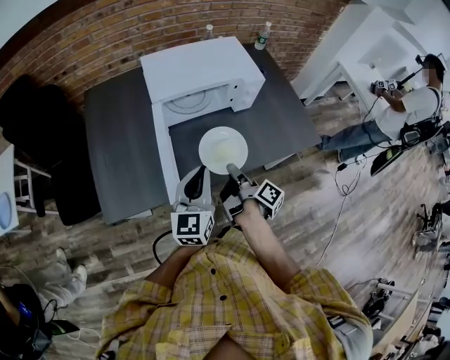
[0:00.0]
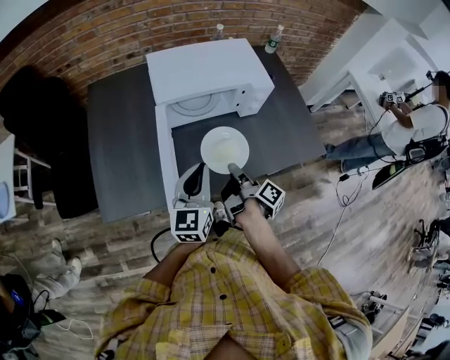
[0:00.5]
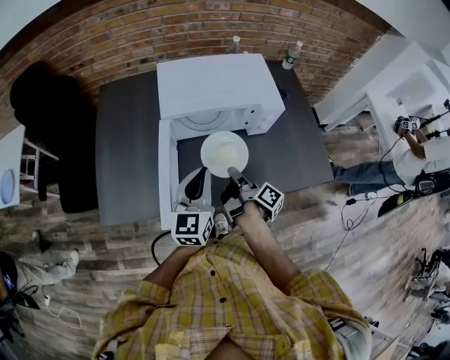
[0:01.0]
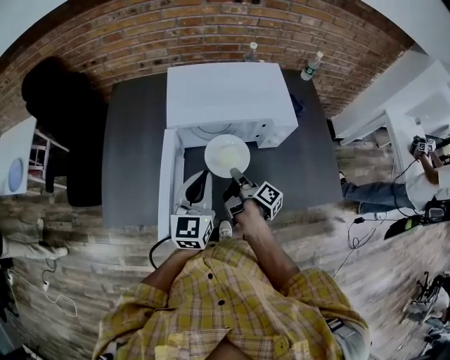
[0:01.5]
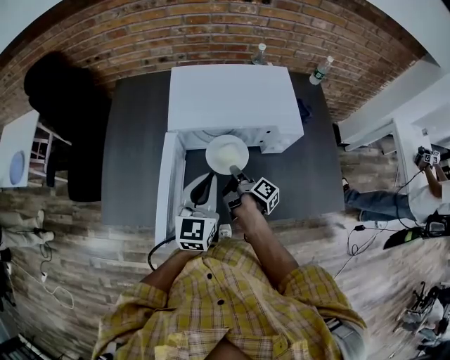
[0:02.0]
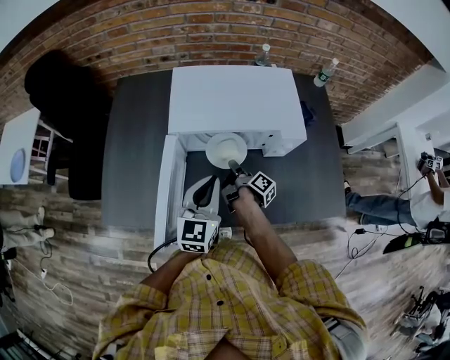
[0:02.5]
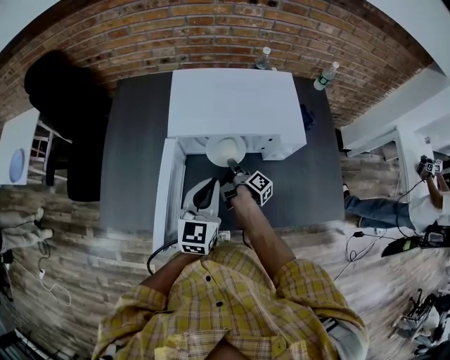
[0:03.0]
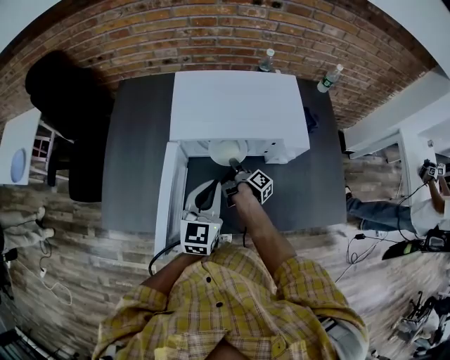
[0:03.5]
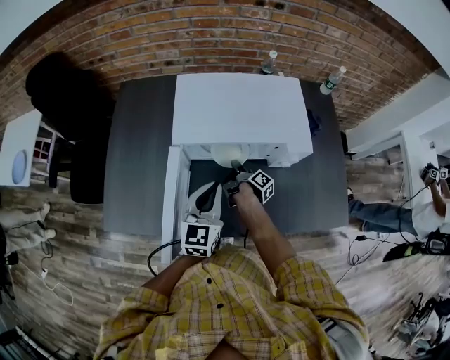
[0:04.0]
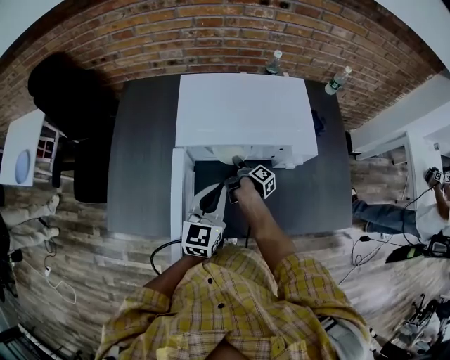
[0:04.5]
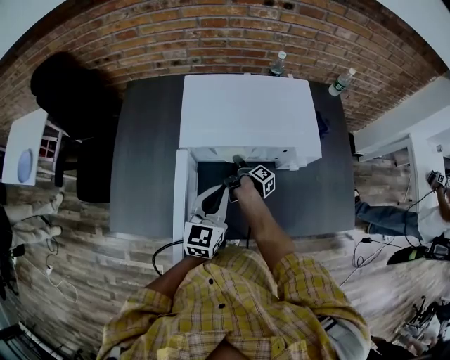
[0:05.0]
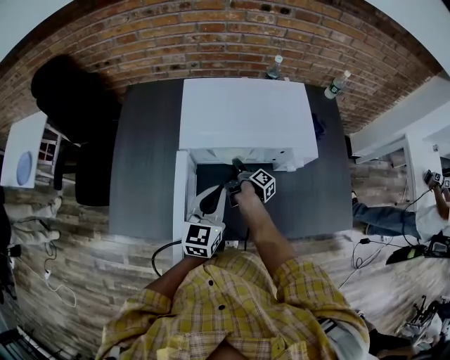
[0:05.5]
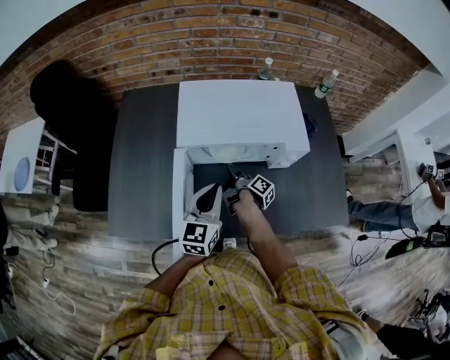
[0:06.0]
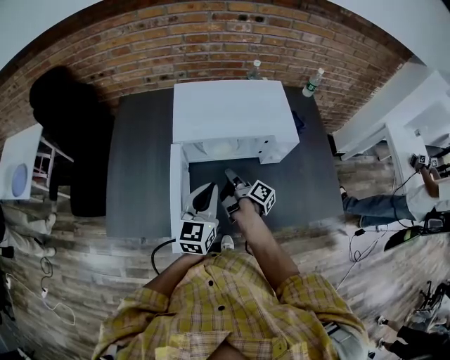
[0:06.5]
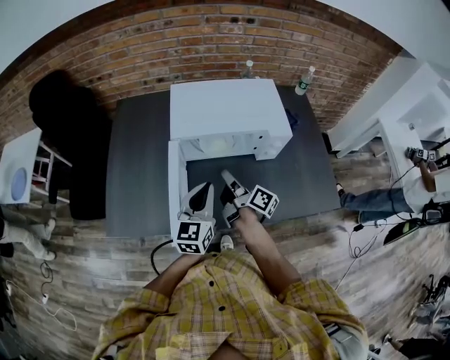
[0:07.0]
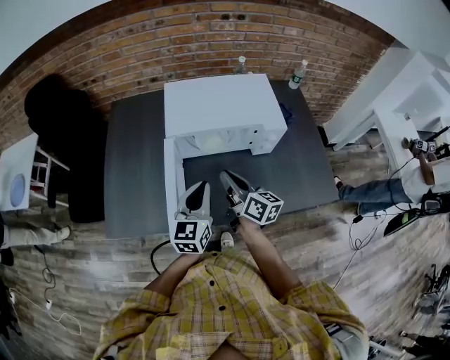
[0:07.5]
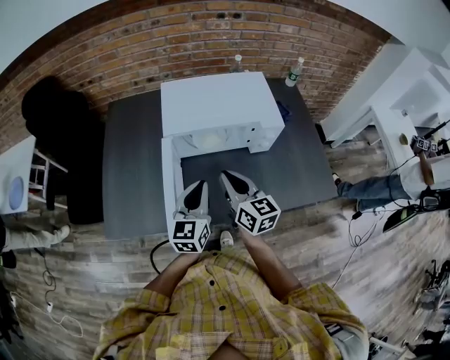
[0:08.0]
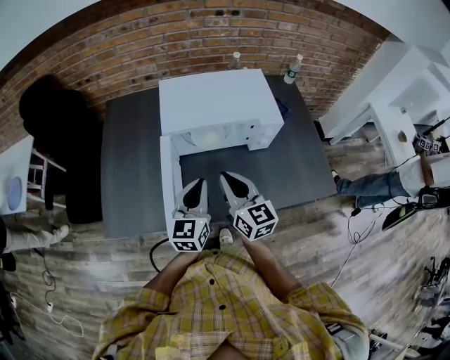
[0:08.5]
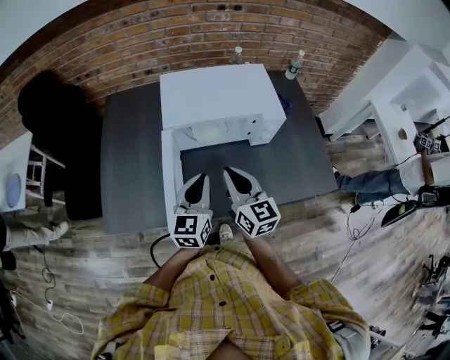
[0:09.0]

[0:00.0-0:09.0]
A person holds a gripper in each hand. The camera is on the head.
0:00.0 to 0:02.0: The left gripper shifts by approximately 15 cm.
0:02.0 to 0:04.5: The left gripper changes place by some 5 cm.
0:04.5 to 0:07.0: The left gripper moves some 10 cm.

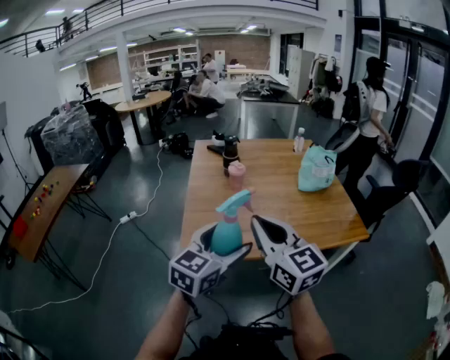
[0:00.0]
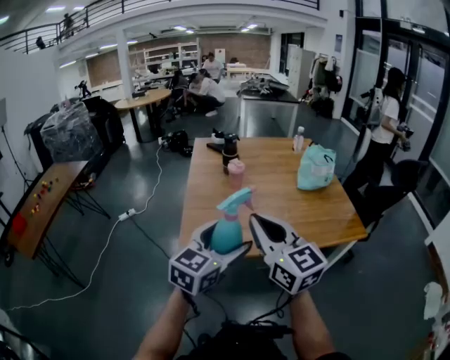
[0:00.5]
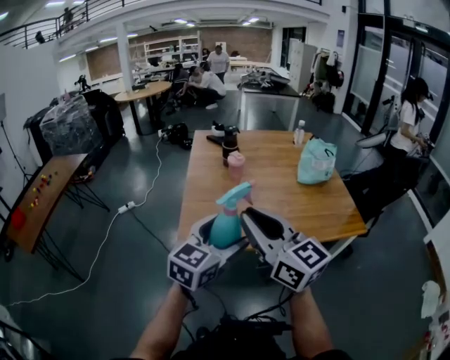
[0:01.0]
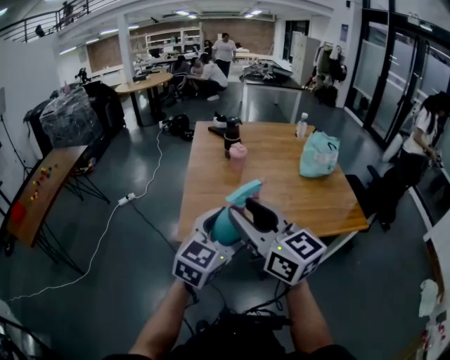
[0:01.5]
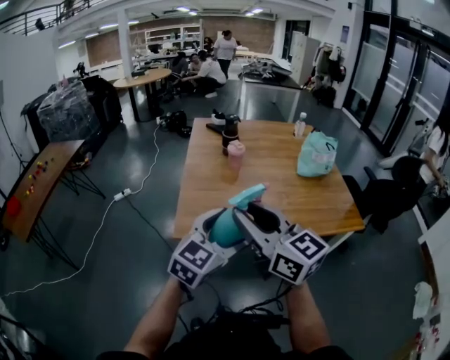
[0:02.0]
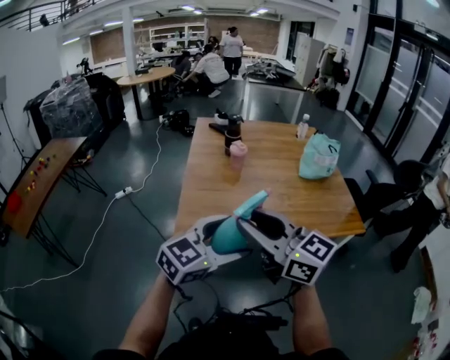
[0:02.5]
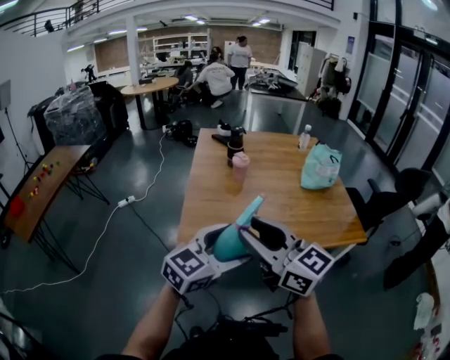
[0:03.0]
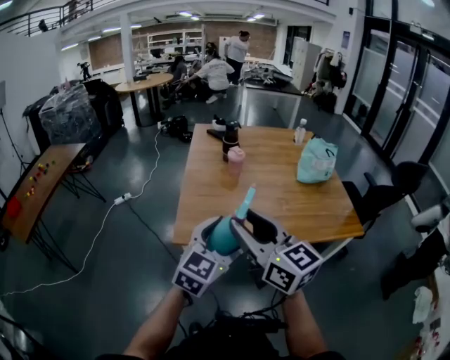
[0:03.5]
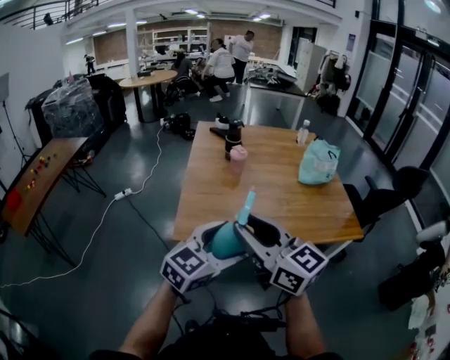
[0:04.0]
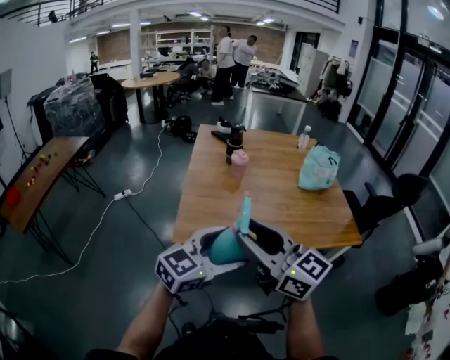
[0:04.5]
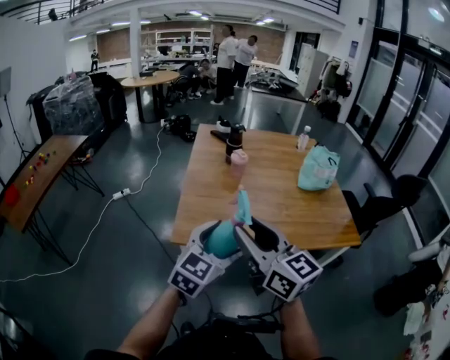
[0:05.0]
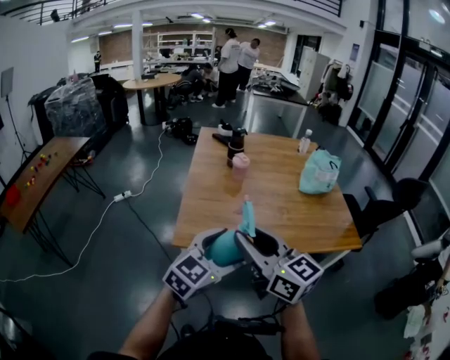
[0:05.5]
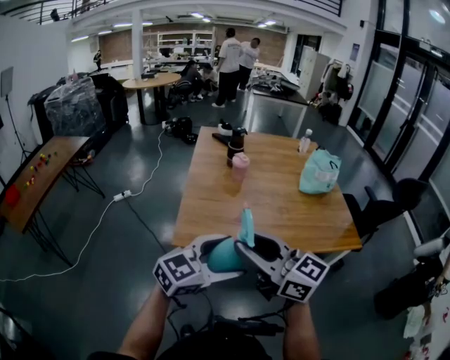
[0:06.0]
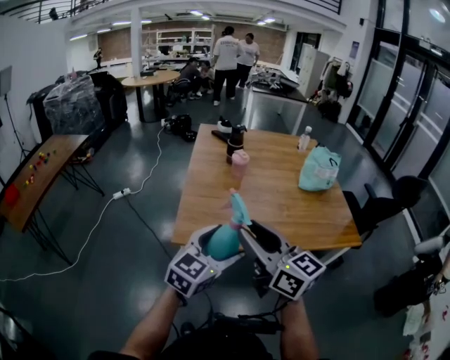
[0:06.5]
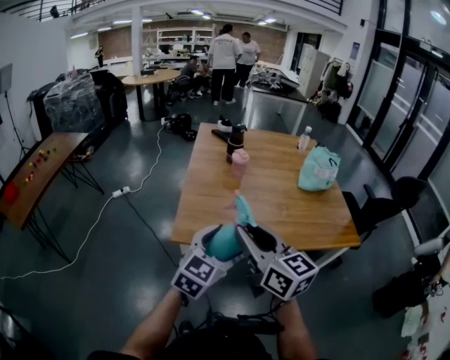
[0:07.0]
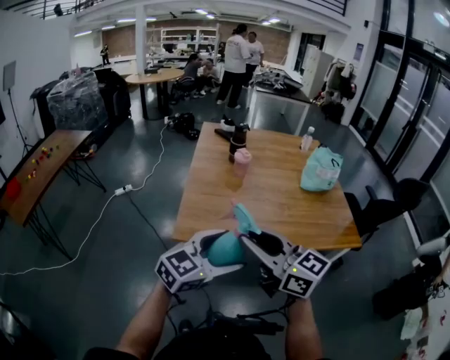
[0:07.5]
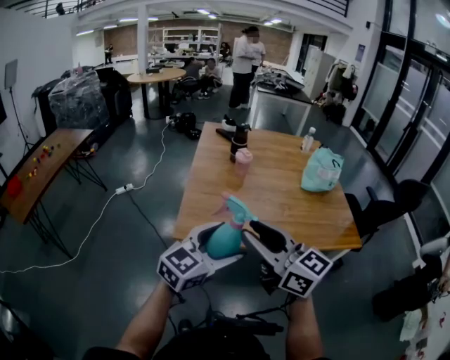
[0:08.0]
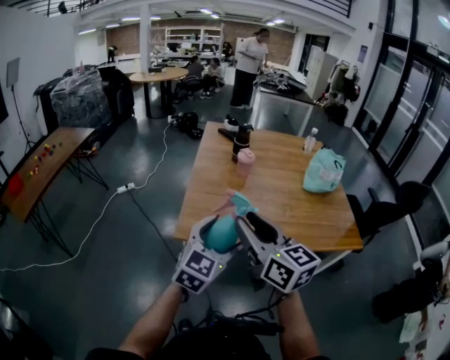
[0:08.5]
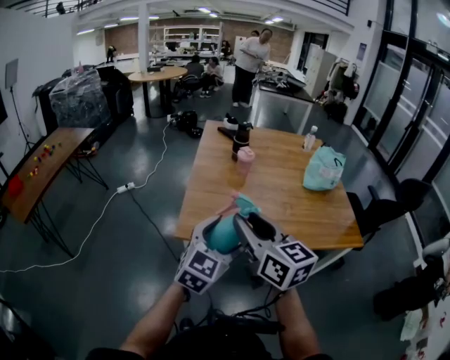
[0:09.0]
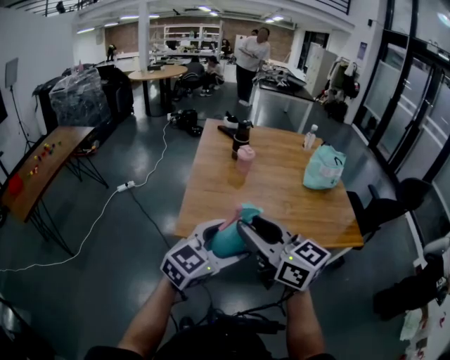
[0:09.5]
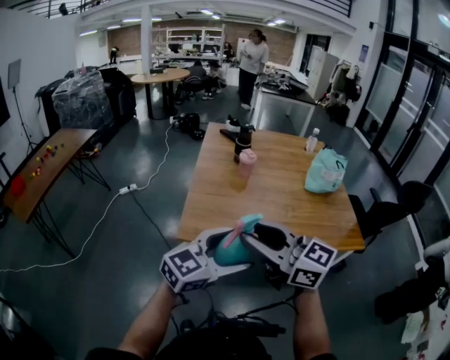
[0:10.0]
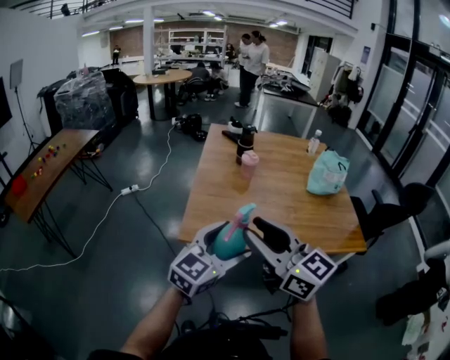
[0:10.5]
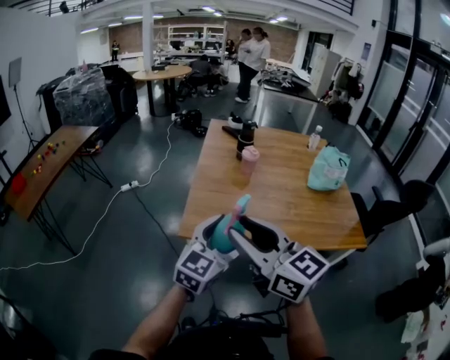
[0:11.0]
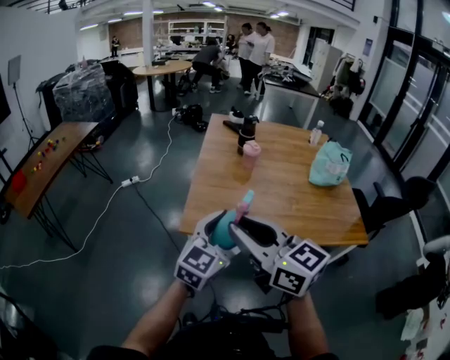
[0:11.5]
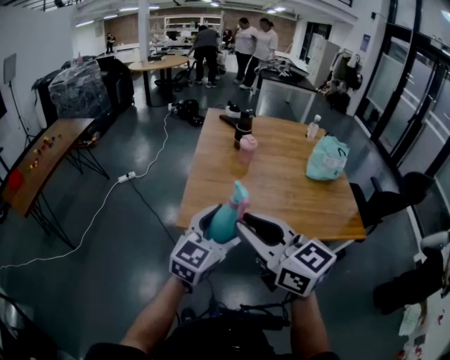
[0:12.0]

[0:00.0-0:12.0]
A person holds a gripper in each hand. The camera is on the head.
0:00.0 to 0:02.0: The right gripper opens up.
0:04.0 to 0:06.0: The grippers make only small movements.
0:10.0 to 0:12.0: The left gripper heads forward, covering approximately 5 cm, and swivels about 20 degrees.

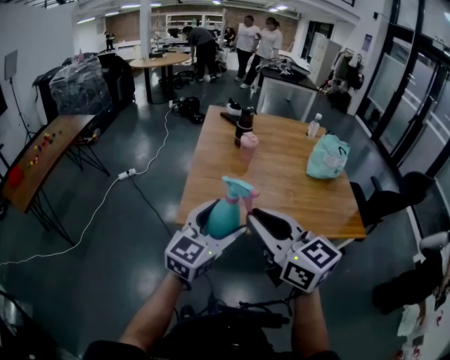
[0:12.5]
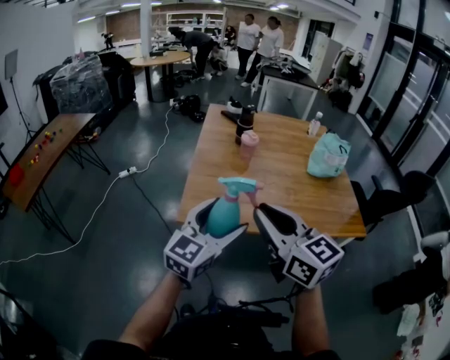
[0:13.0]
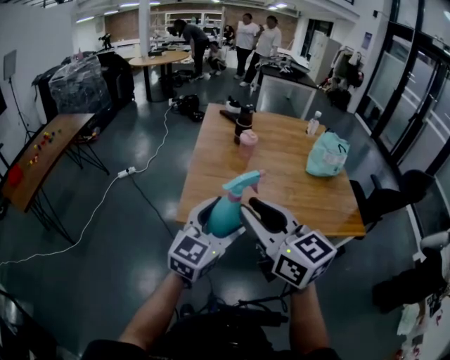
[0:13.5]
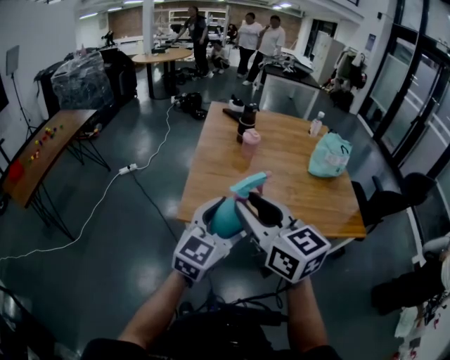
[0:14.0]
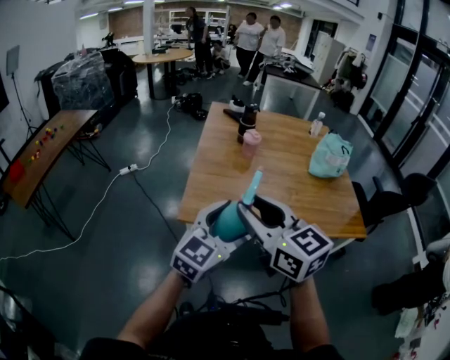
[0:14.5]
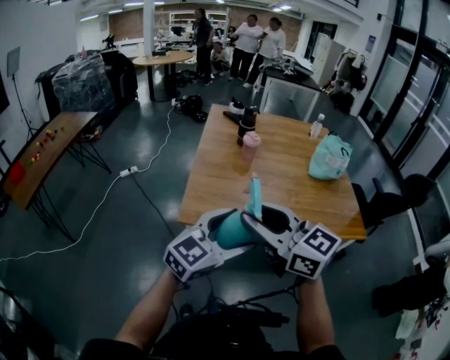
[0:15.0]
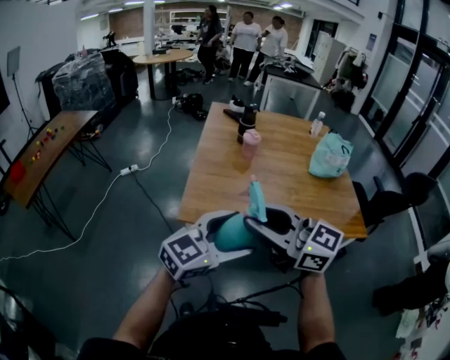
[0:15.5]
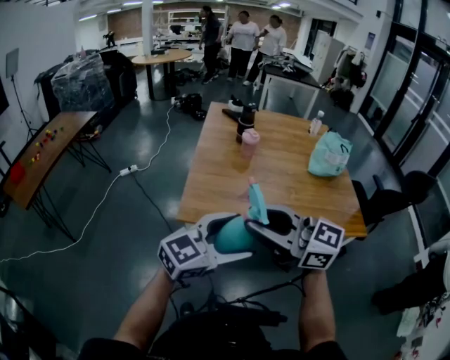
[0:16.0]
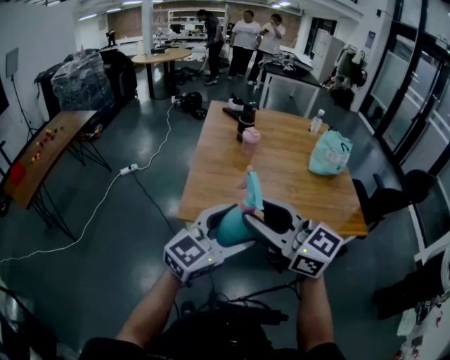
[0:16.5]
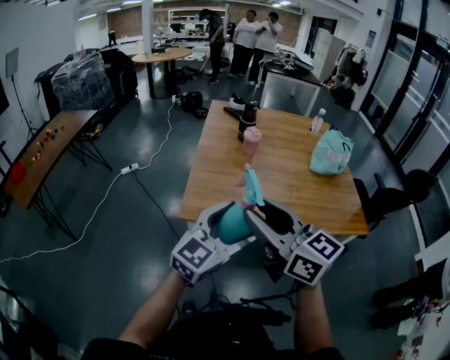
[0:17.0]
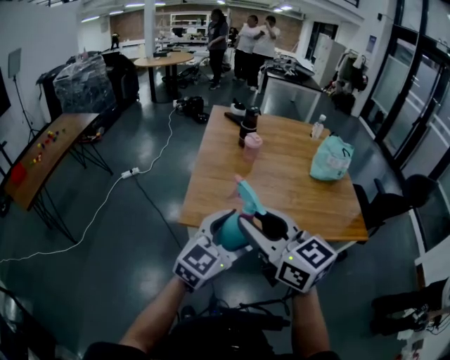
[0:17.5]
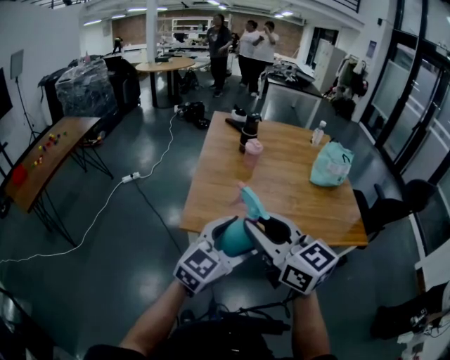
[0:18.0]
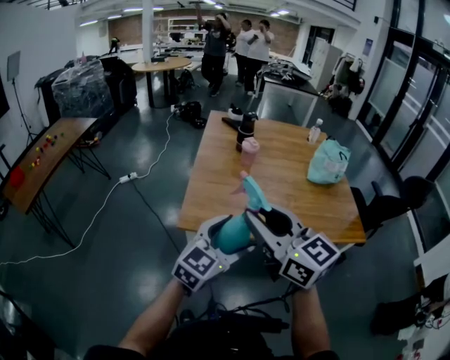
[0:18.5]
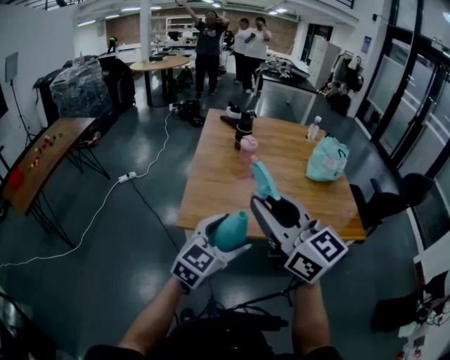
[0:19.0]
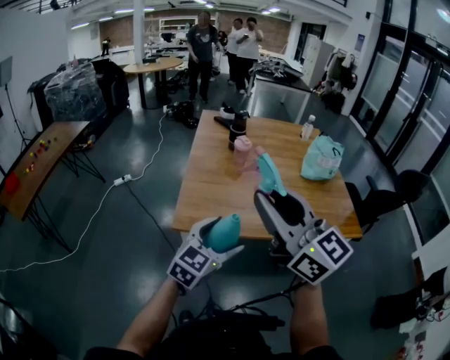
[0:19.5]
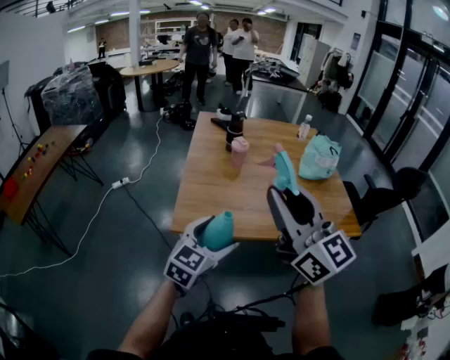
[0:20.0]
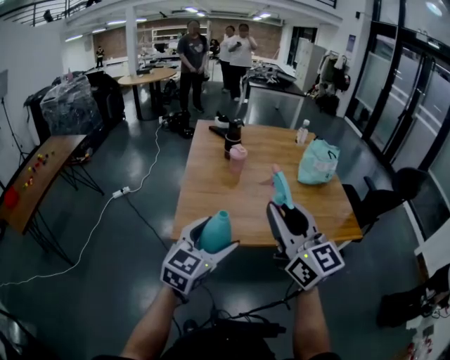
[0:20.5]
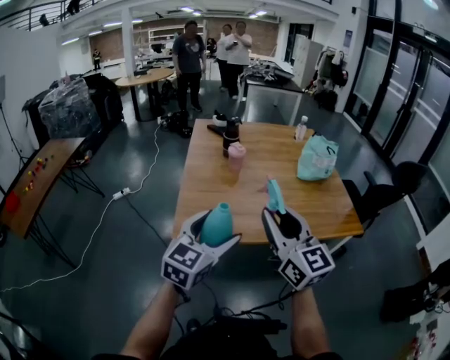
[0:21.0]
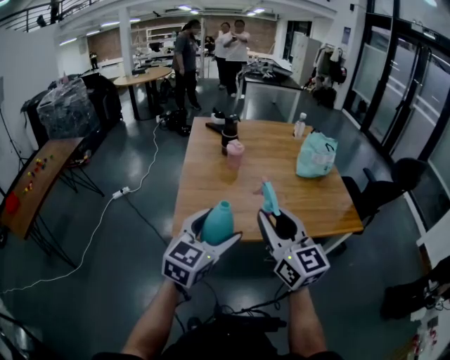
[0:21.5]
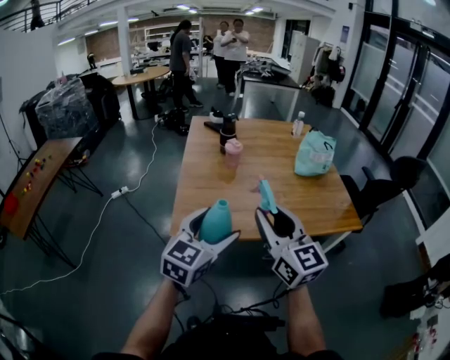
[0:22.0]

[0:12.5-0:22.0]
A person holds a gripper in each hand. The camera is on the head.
0:12.5 to 0:14.5: The grippers move only a little.
0:16.5 to 0:18.0: The grippers make only small movements.
0:18.0 to 0:20.0: The right gripper heads upward and to the right, covering approximately 10 cm, and turns by roughly 20 degrees; the left gripper ends up some 5 cm from where it was.
0:20.0 to 0:22.0: The right gripper moves downward, approximately 10 cm.
